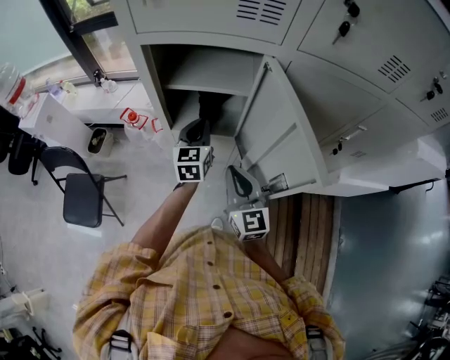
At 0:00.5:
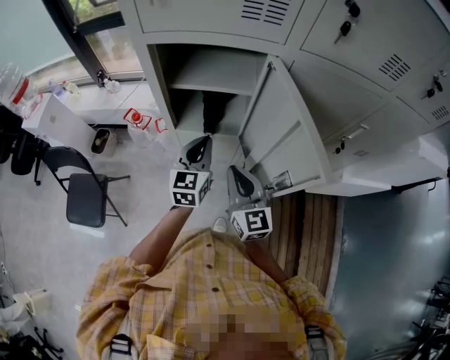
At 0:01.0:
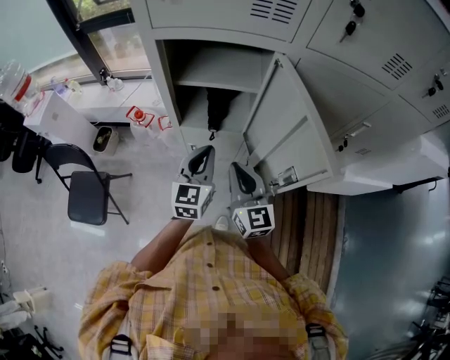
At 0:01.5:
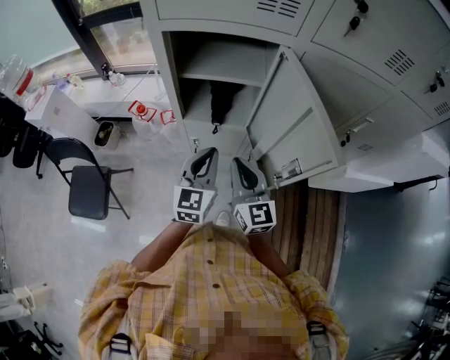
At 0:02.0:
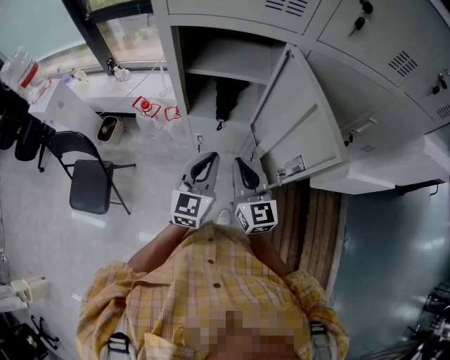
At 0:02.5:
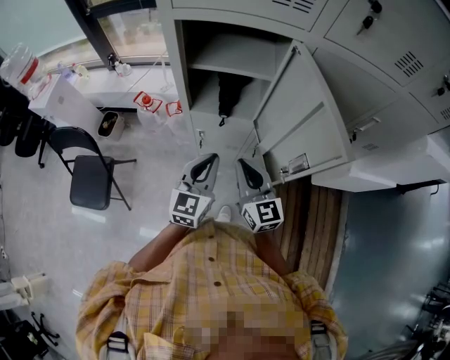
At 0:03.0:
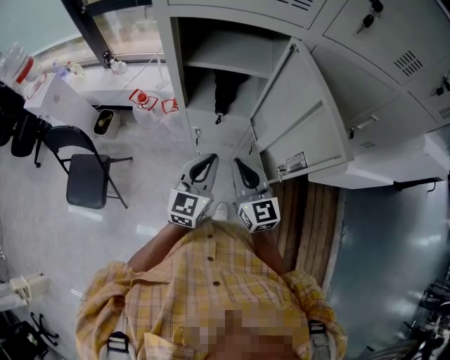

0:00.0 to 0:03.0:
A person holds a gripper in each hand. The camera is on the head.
0:00.0 to 0:01.5: The left gripper heads backward, covering approximately 15 cm.
0:01.5 to 0:03.0: The grippers move only a little.

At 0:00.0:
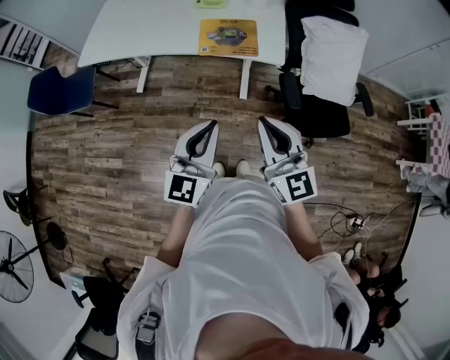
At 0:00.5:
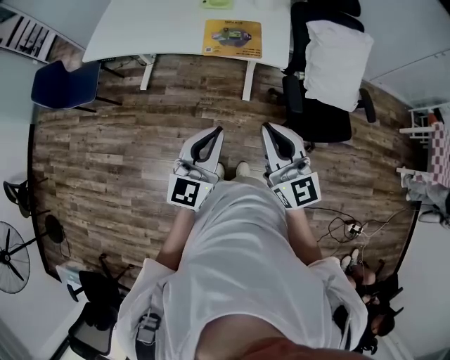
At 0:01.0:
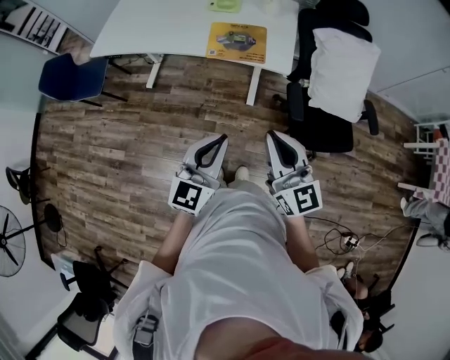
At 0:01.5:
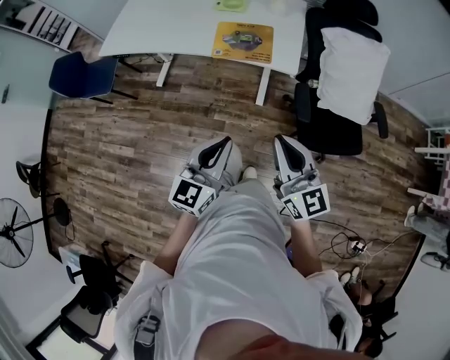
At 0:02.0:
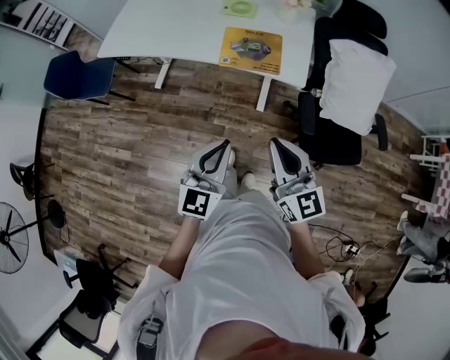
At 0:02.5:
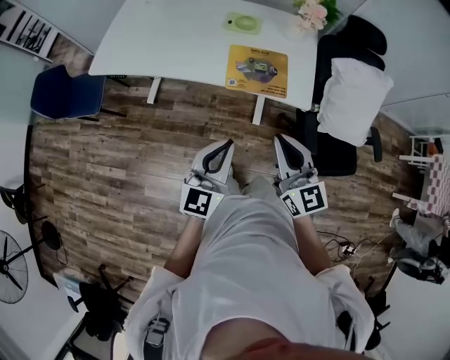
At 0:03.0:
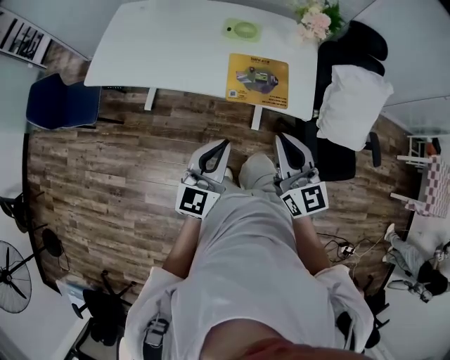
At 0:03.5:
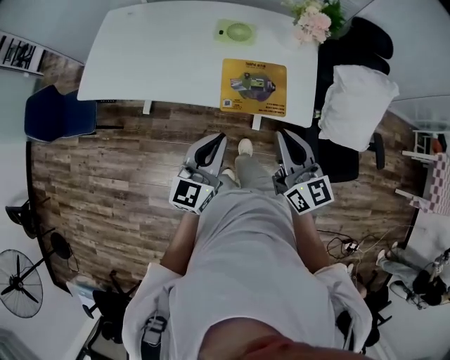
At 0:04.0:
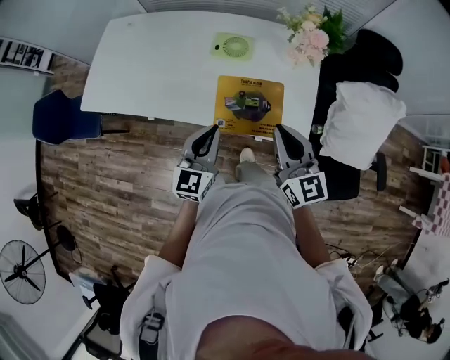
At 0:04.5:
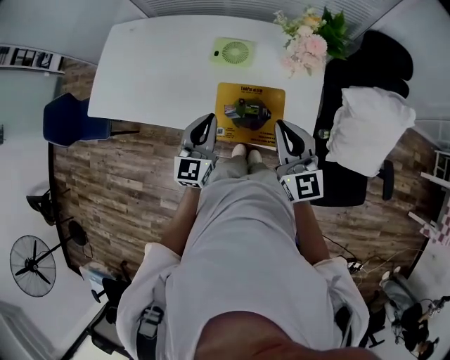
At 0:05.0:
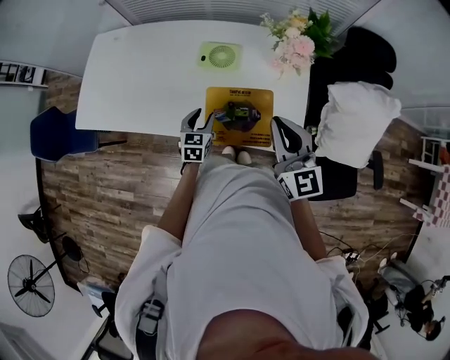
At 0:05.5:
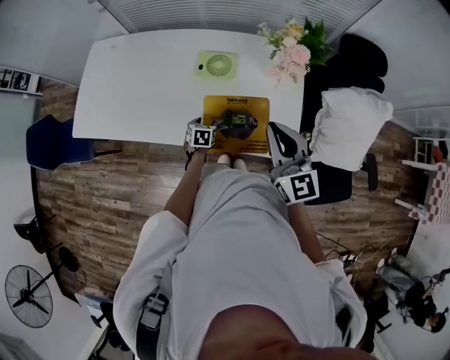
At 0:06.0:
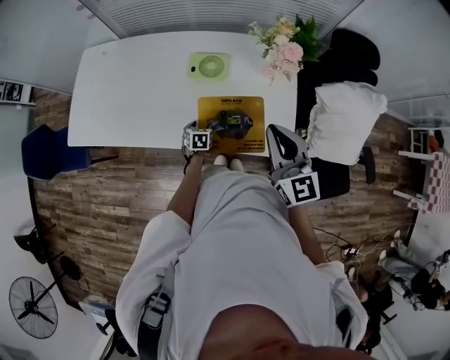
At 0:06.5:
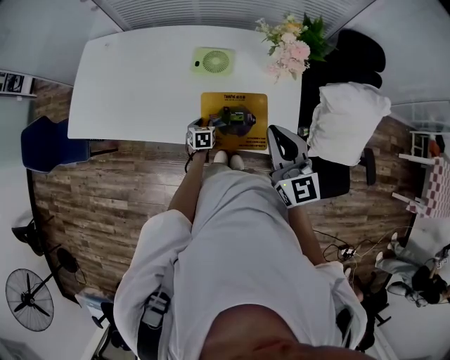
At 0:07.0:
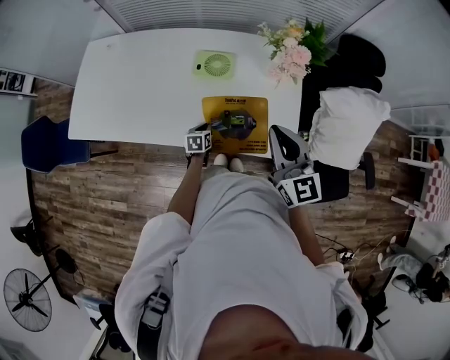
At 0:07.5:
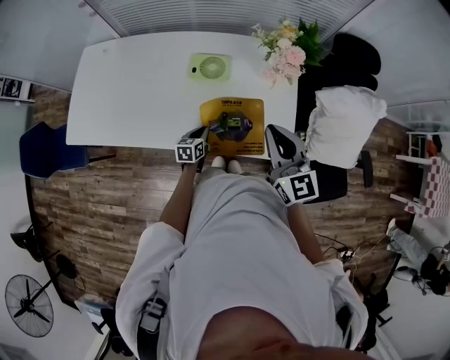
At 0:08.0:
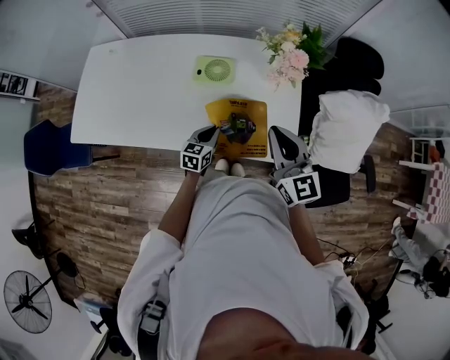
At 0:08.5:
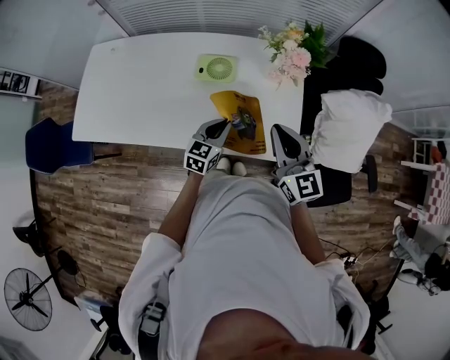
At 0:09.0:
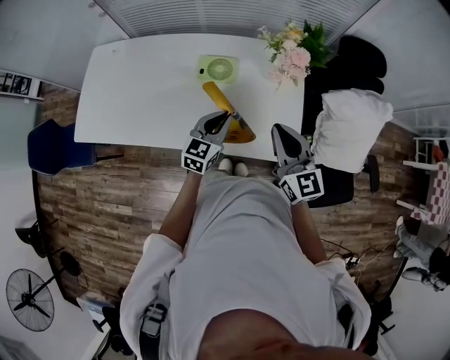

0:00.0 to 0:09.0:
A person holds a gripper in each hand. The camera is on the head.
0:00.0 to 0:02.0: The right gripper reaches roughly 10 cm to the right, then returns.
0:02.0 to 0:04.5: The pair of grippers is taken forward, about 40 cm.
0:04.5 to 0:07.0: The left gripper shifts some 30 cm downward, tips its fingers downward by approximately 40 degrees, and opens, then closes again.
0:07.0 to 0:09.0: The left gripper is displaced upward by about 25 cm, and points its fingers approximately 30 degrees further upward.

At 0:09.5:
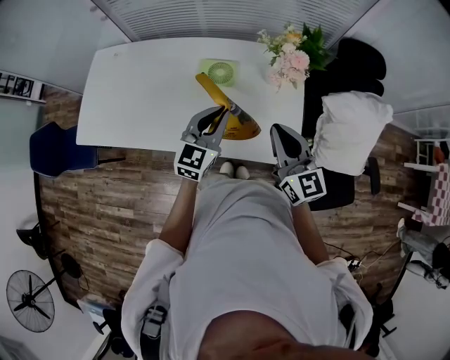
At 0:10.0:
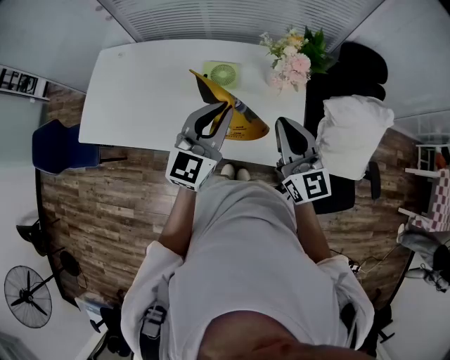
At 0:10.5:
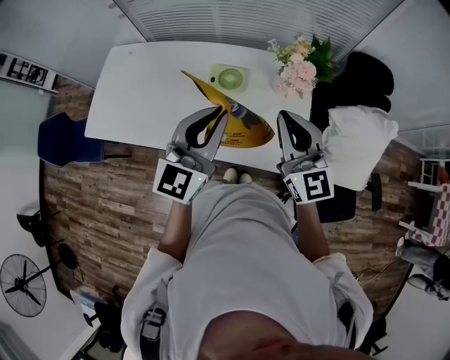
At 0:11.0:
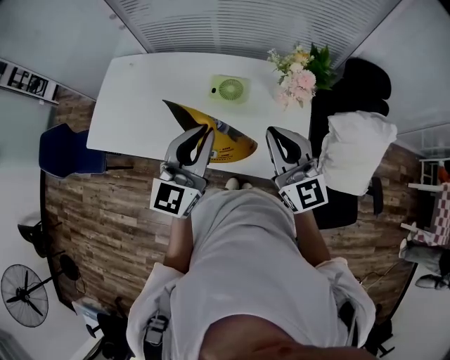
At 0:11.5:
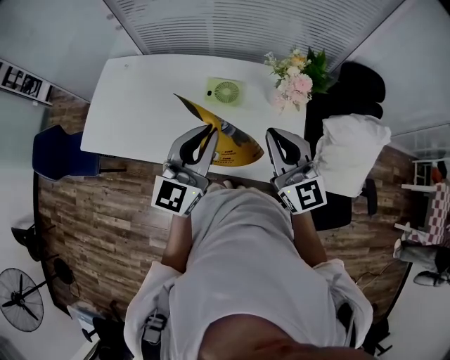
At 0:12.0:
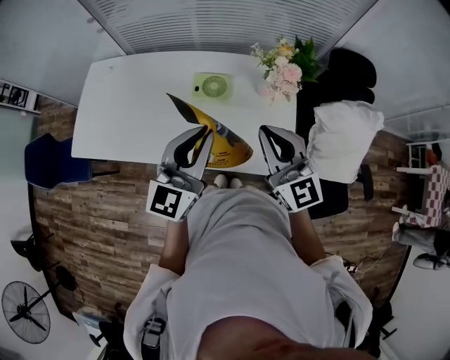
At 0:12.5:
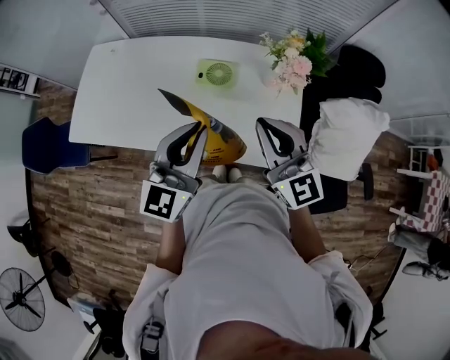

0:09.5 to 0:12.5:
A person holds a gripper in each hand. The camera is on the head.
0:09.5 to 0:11.0: The left gripper travels upward by approximately 15 cm; the right gripper shifts some 5 cm upward.
0:11.0 to 0:12.5: The grippers move only a little.

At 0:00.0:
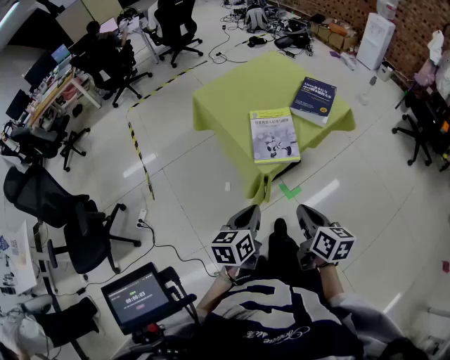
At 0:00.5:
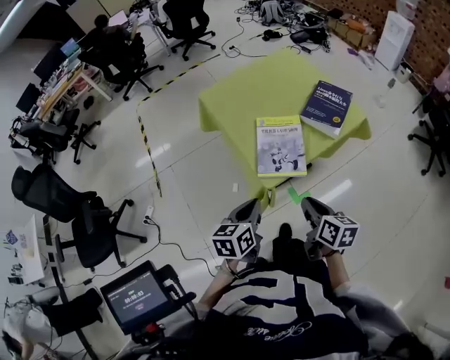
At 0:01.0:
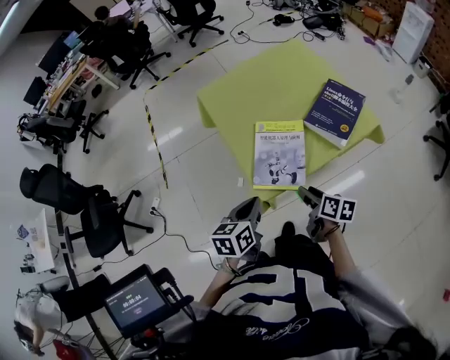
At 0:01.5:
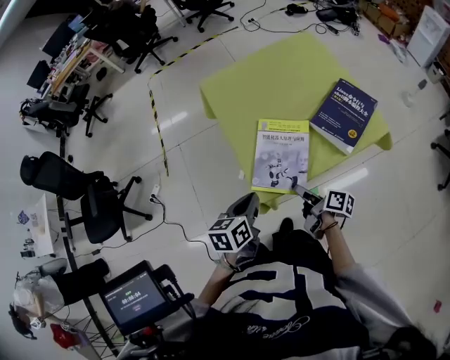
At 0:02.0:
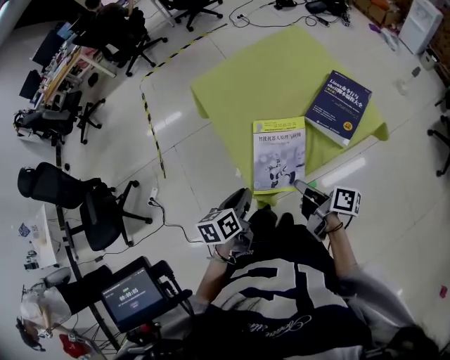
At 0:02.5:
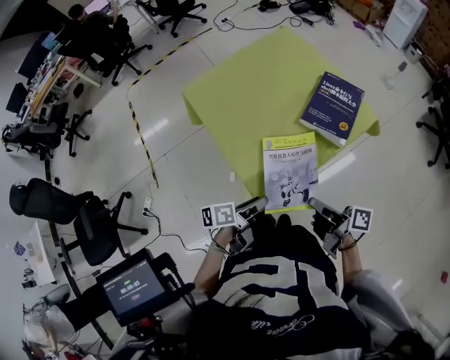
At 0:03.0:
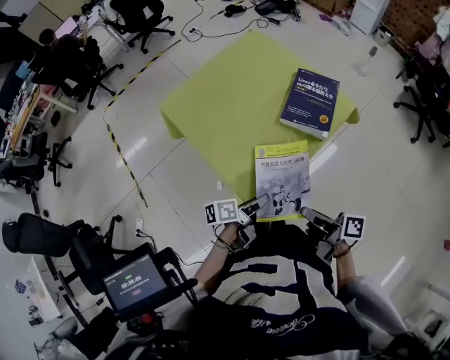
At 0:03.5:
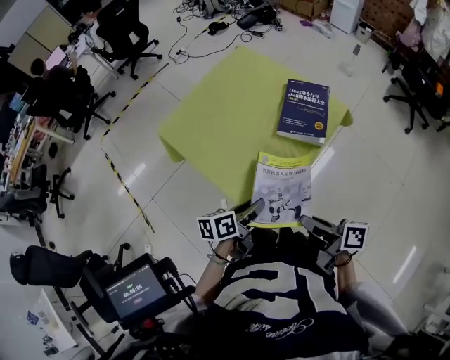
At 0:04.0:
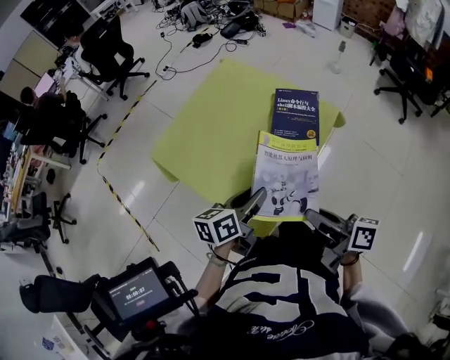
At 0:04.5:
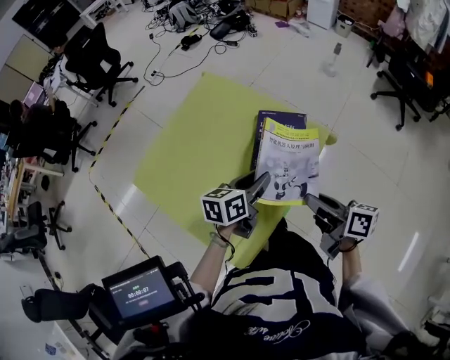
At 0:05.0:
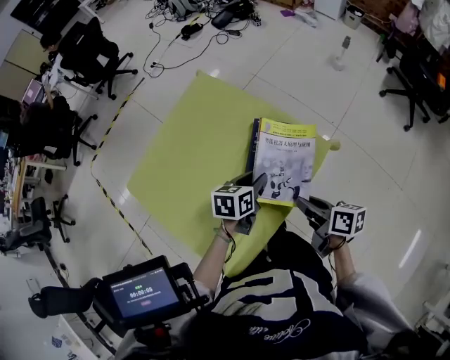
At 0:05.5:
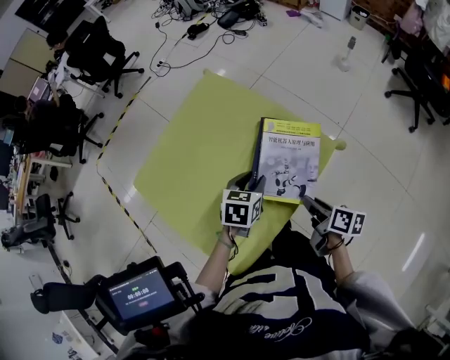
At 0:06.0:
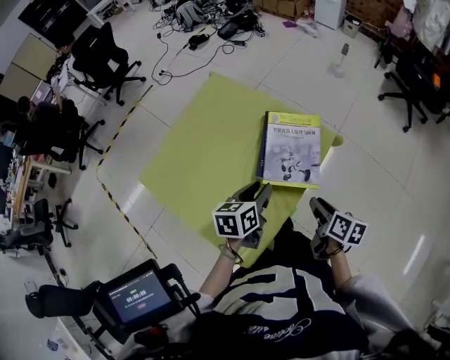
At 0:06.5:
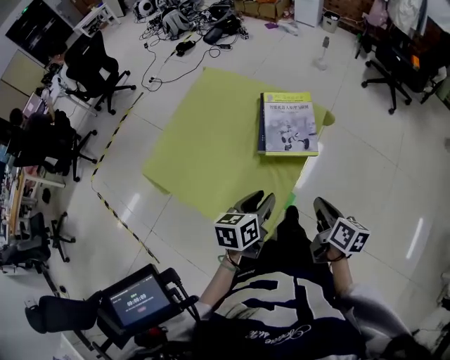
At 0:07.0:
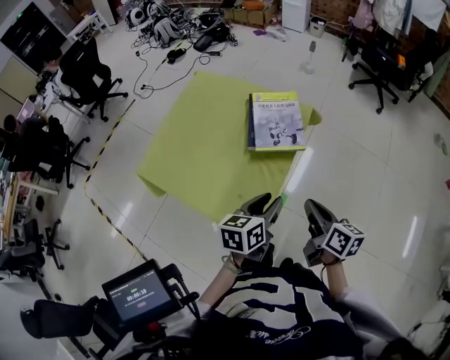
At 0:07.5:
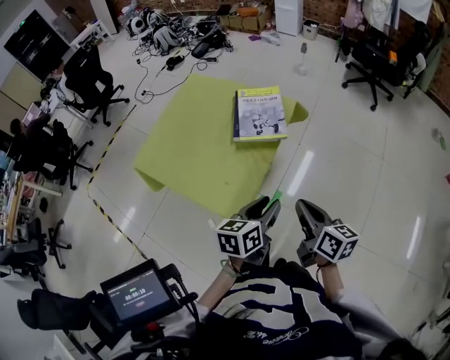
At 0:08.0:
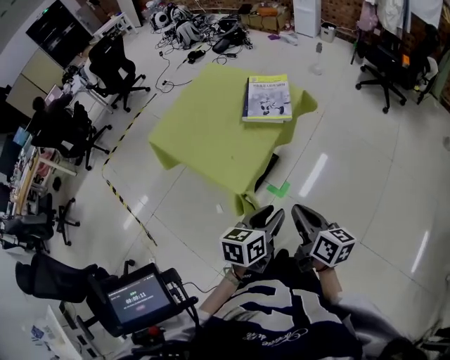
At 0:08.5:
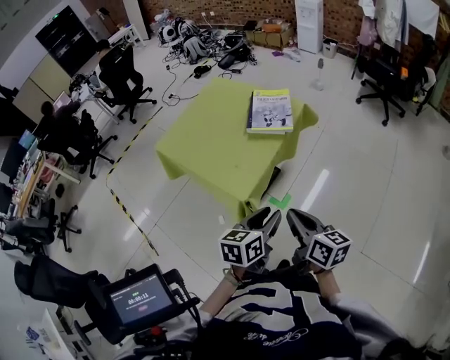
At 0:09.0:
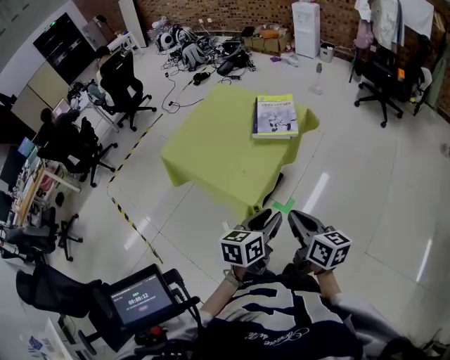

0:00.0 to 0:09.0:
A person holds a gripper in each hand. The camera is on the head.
0:00.0 to 0:02.0: The right gripper is displaced forward and downward by roughly 25 cm, swivels about 40 degrees, and opens, then closes again. The left gripper moves forward, some 20 cm.
0:02.0 to 0:04.5: The left gripper moves roughly 35 cm, and turns by some 50 degrees, while the right gripper changes place by some 20 cm, and changes its angle by roughly 30 degrees.
0:04.5 to 0:07.0: Both grippers travel together backward, approximately 20 cm. The right gripper rotates some 30 degrees, and closes its fingers.
0:07.0 to 0:09.0: Both grippers move backward, roughly 20 cm.

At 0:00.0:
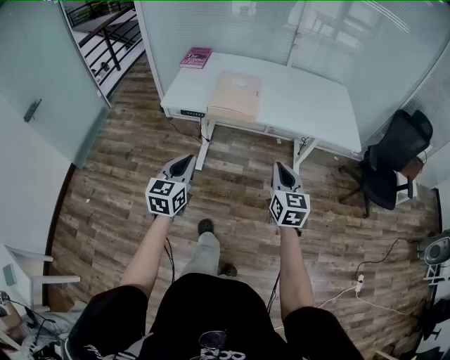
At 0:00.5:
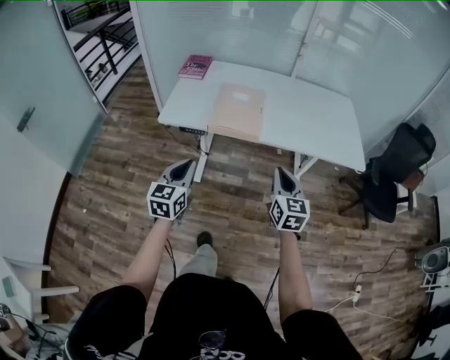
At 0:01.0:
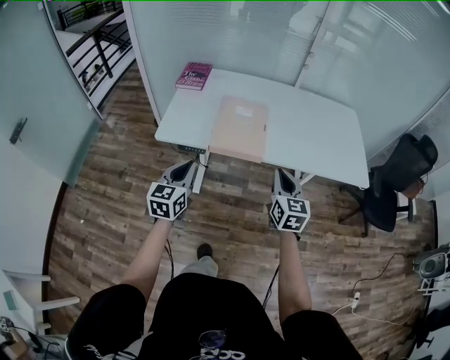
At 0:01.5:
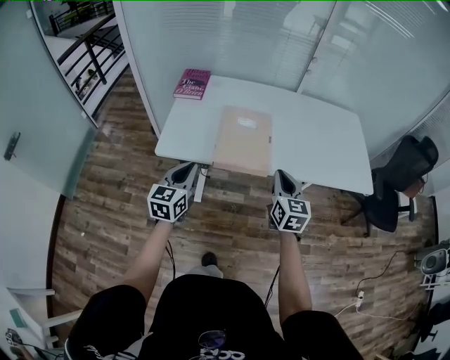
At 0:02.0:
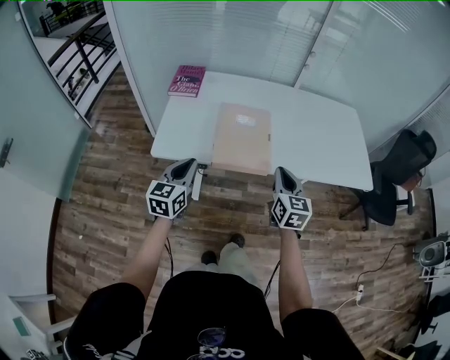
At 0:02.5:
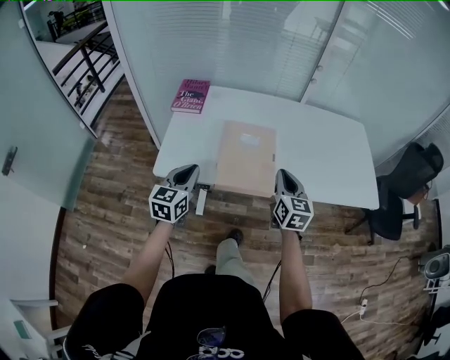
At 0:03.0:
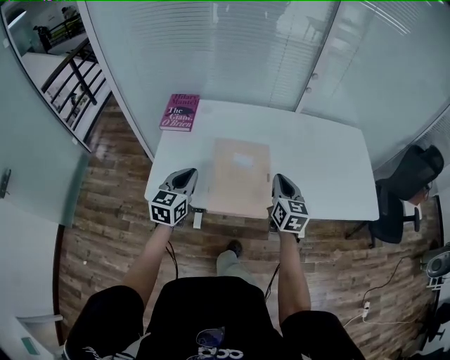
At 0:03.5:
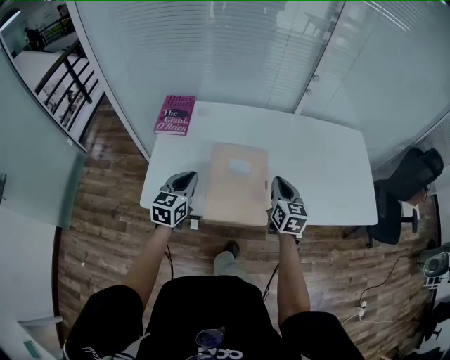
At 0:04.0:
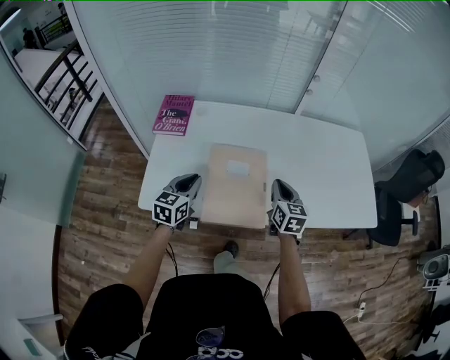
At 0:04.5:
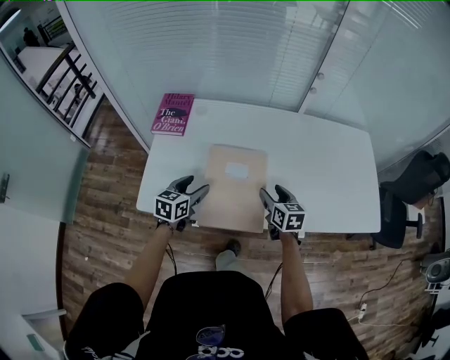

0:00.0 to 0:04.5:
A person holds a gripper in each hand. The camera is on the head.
0:00.0 to 0:02.0: Both grippers travel together forward, roughly 30 cm.
0:02.0 to 0:04.5: The two grippers go roughly 25 cm forward and downward. The right gripper turns by some 20 degrees, and opens. The left gripper opens its fingers.
